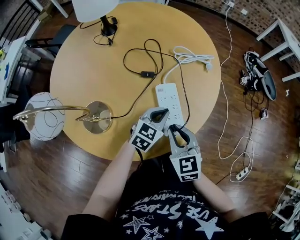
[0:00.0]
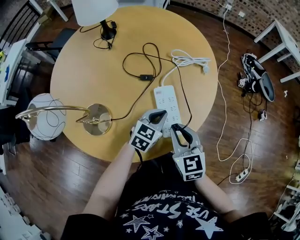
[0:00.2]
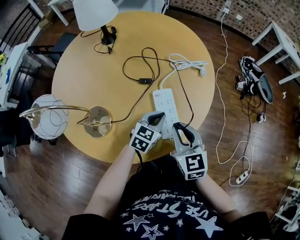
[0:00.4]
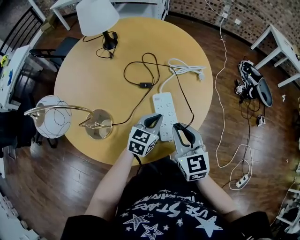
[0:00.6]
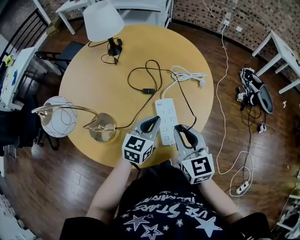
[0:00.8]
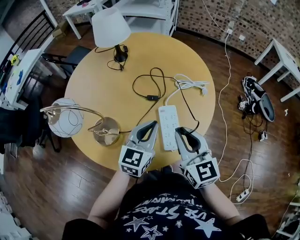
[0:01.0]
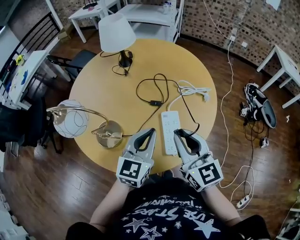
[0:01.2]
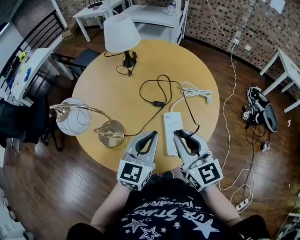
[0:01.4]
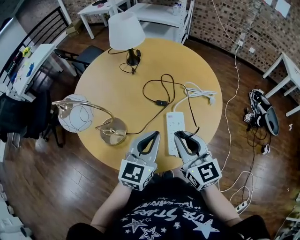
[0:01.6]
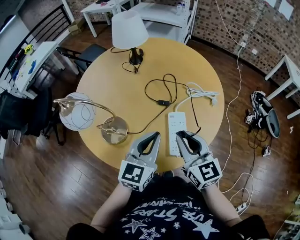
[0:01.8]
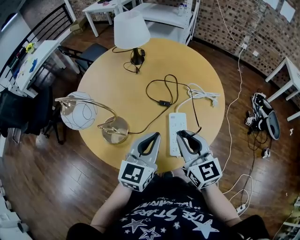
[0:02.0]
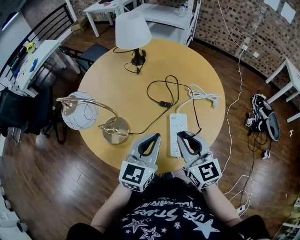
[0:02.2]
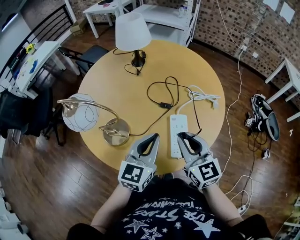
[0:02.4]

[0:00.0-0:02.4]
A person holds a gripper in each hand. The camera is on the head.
0:00.0 to 0:01.2: The grippers both shift upward by some 15 cm. The left gripper changes its angle by roughly 30 degrees. Meanwhile the right gripper changes its angle by some 30 degrees.
0:01.2 to 0:02.4: The grippers make only small movements.

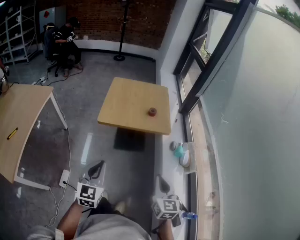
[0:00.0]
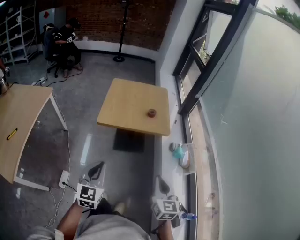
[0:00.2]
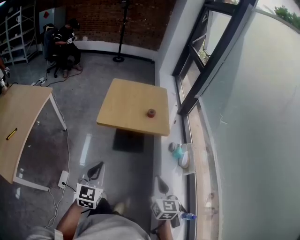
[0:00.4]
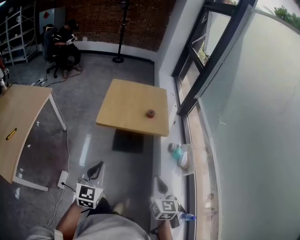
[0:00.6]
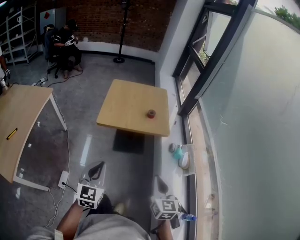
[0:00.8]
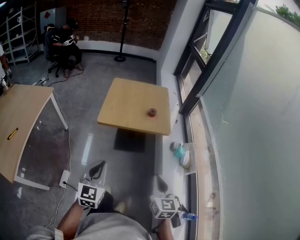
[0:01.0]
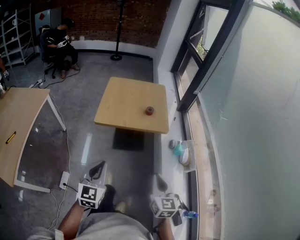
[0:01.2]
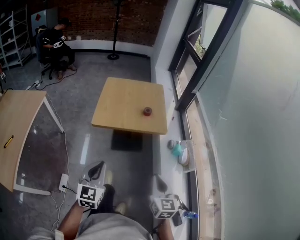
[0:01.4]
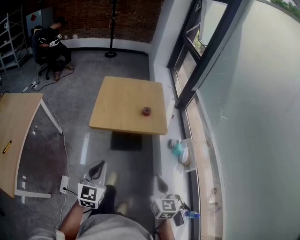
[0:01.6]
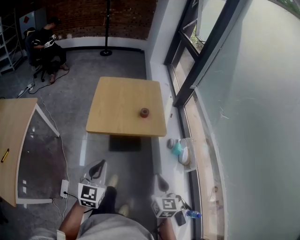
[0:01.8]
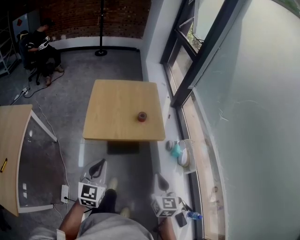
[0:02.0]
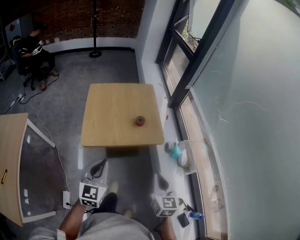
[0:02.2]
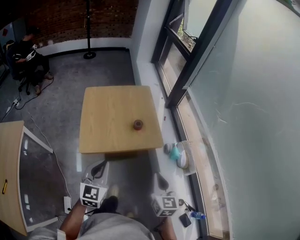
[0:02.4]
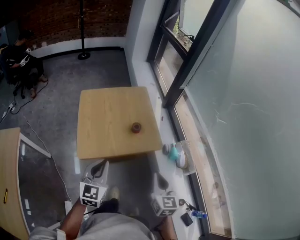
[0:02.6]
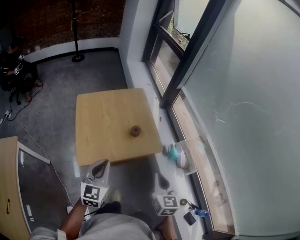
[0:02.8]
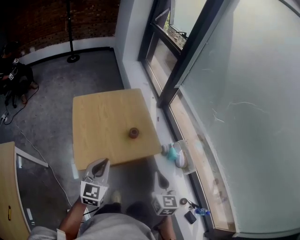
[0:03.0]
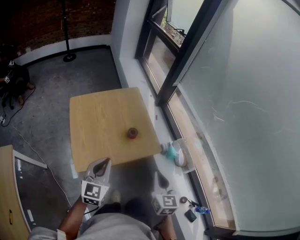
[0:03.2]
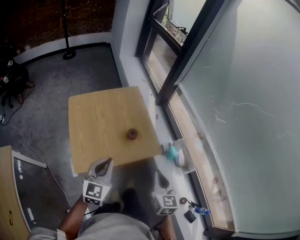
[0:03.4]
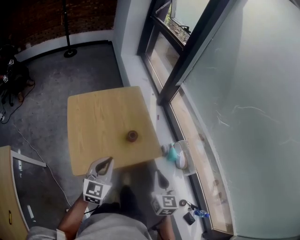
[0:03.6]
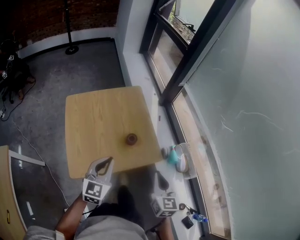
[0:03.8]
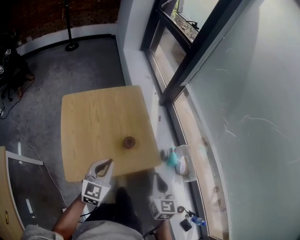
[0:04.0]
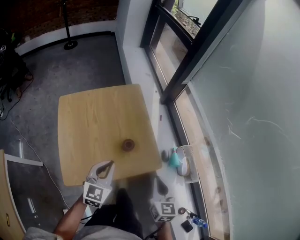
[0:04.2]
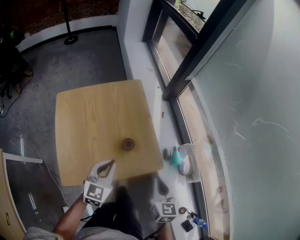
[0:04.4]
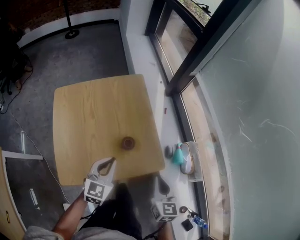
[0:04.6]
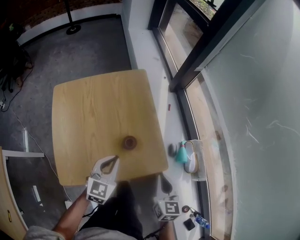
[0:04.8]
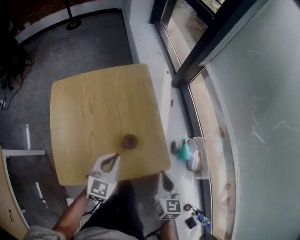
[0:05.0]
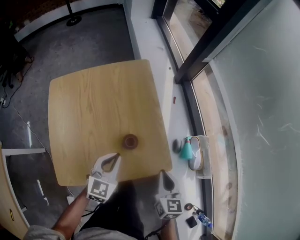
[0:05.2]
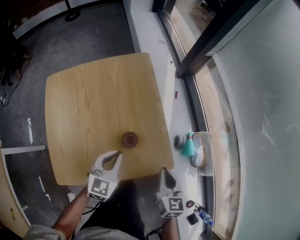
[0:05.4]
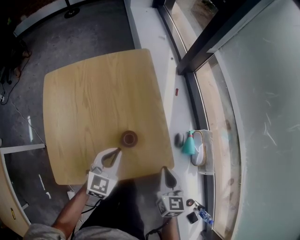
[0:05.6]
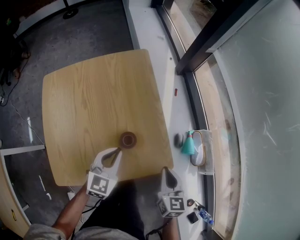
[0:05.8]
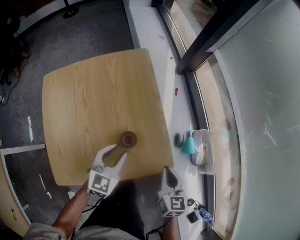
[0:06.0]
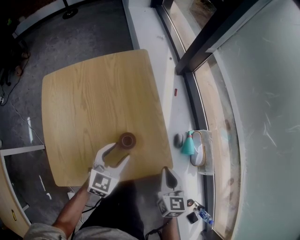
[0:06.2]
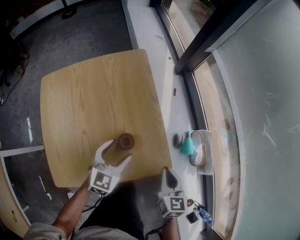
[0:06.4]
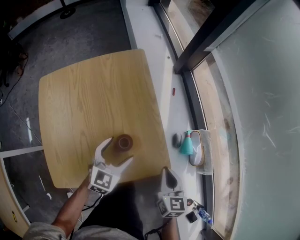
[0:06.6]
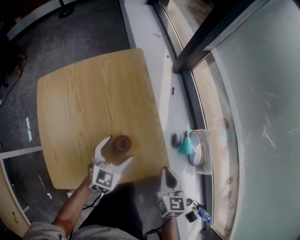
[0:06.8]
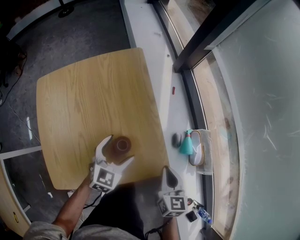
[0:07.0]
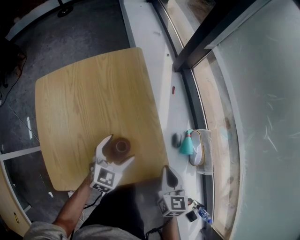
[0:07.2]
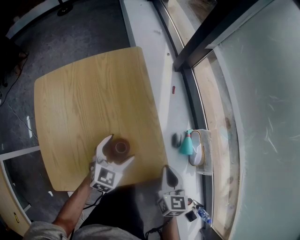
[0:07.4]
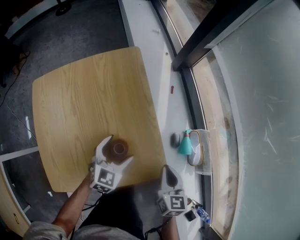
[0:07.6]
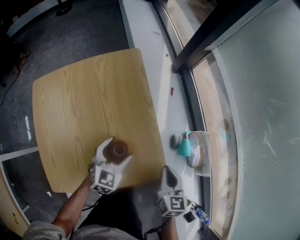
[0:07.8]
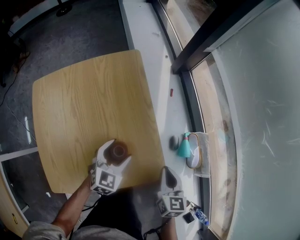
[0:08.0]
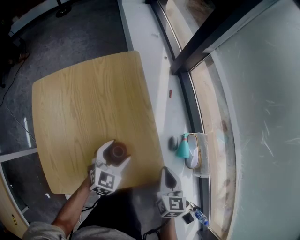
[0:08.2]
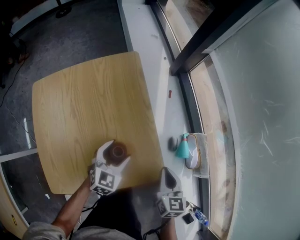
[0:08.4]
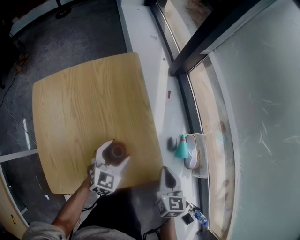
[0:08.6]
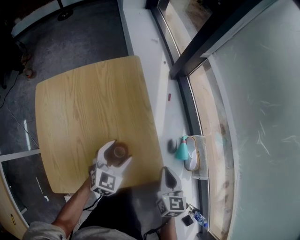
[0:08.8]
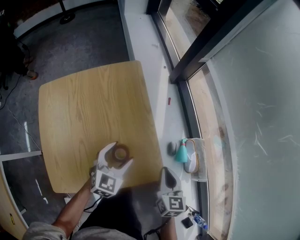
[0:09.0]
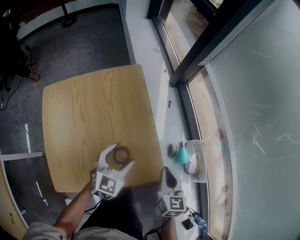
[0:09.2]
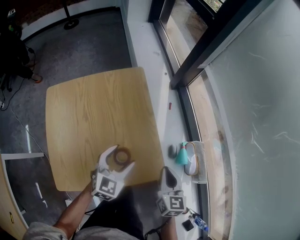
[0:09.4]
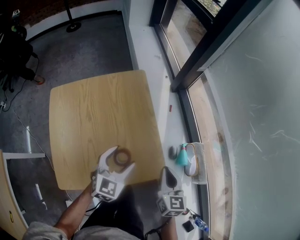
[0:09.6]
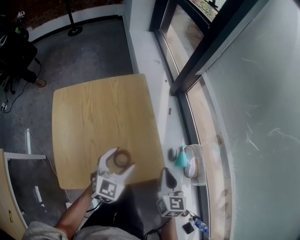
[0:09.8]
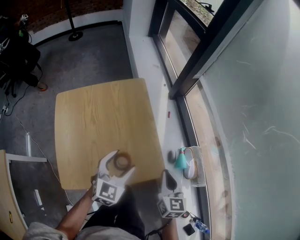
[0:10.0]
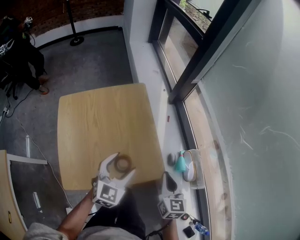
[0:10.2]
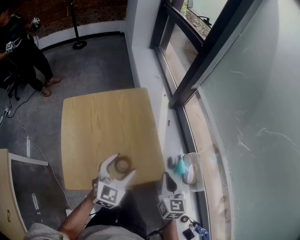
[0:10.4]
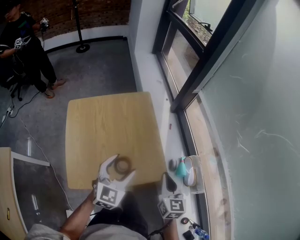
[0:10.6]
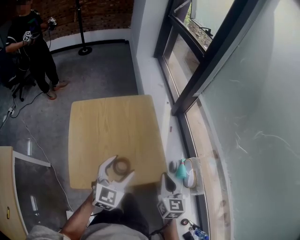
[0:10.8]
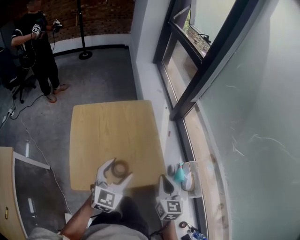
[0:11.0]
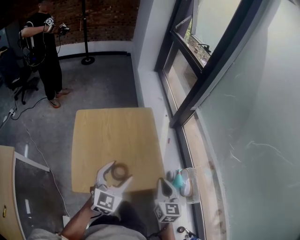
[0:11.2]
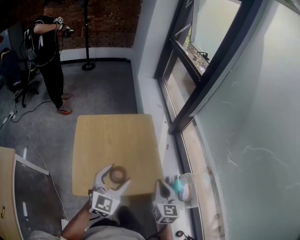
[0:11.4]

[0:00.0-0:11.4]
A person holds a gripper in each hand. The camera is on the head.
0:00.0 to 0:01.4: The grippers stay close to where they were, moving slightly.
0:01.4 to 0:02.8: The grippers both shift forward by about 25 cm.
0:02.8 to 0:04.2: The grippers both shift forward and downward by about 20 cm.
0:04.2 to 0:05.6: Both grippers move downward and forward, roughly 15 cm.
0:05.6 to 0:07.2: The left gripper shifts about 5 cm forward, and opens its fingers.
0:07.2 to 0:08.6: There are only small adjustments of the grippers.
0:08.6 to 0:10.0: The grippers both shift upward by roughly 15 cm.
0:10.0 to 0:11.4: The left gripper moves upward, to the left and backward, some 20 cm. Meanwhile the right gripper moves upward and to the left, about 15 cm.

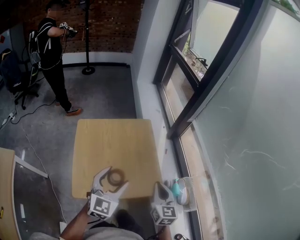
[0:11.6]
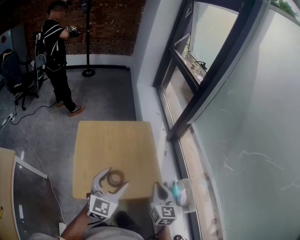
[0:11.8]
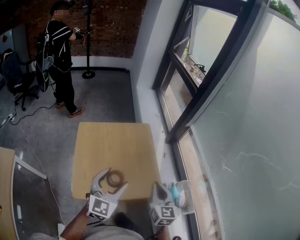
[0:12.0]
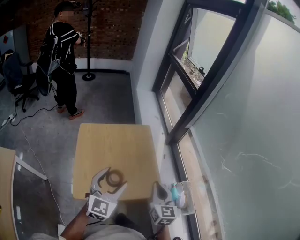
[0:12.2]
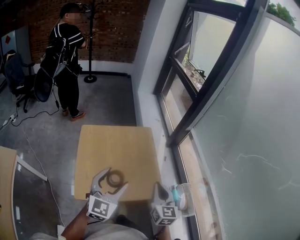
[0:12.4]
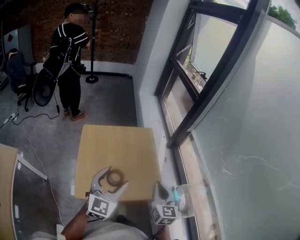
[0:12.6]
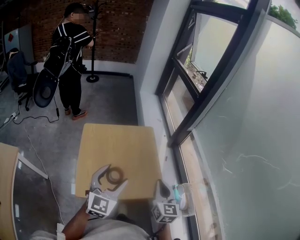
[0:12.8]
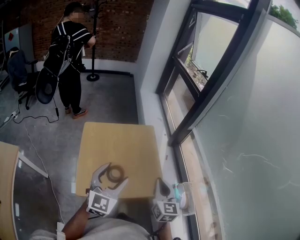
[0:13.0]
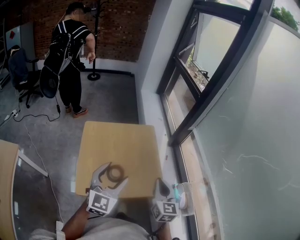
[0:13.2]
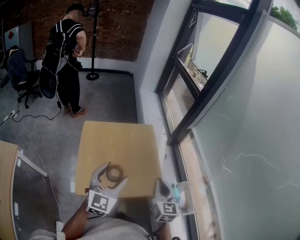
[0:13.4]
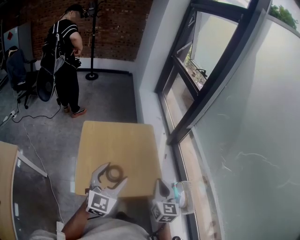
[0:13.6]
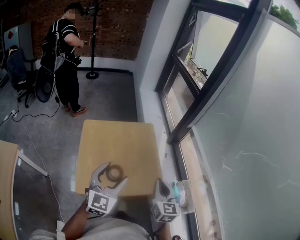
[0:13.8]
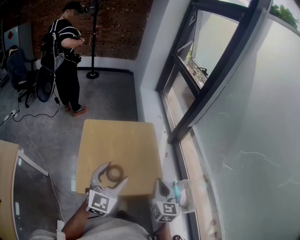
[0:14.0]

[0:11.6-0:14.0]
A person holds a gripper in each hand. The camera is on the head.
0:11.6 to 0:12.8: The left gripper heads upward, covering approximately 5 cm.
0:12.8 to 0:14.0: The grippers make only small movements.

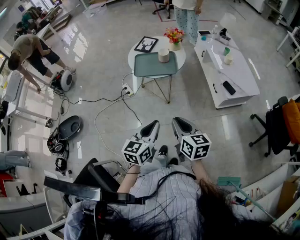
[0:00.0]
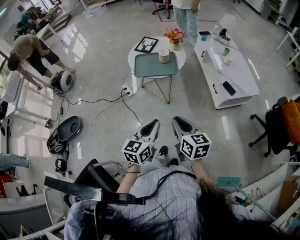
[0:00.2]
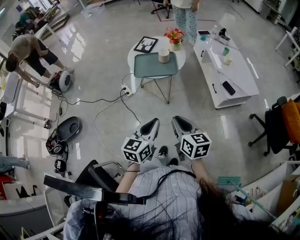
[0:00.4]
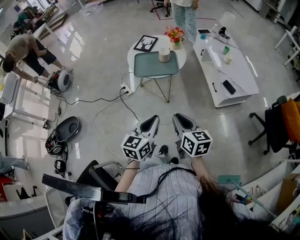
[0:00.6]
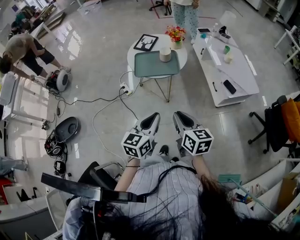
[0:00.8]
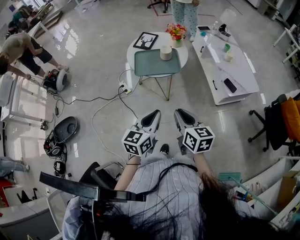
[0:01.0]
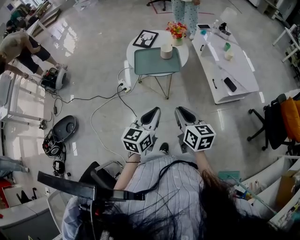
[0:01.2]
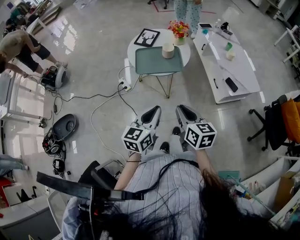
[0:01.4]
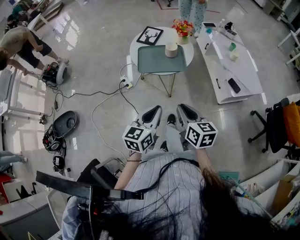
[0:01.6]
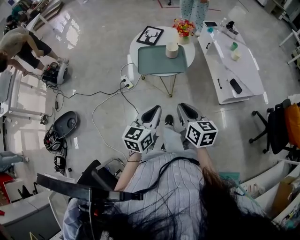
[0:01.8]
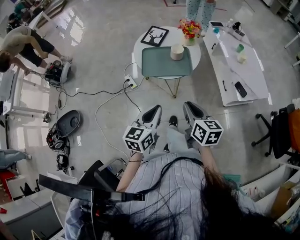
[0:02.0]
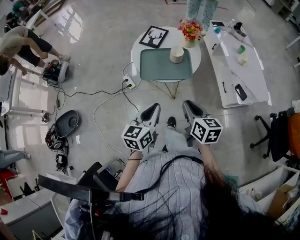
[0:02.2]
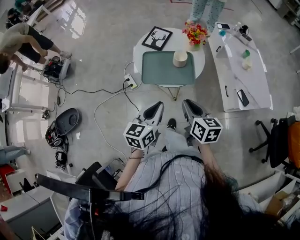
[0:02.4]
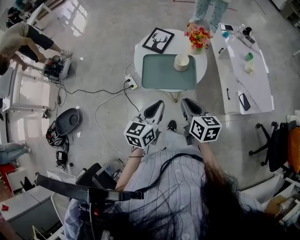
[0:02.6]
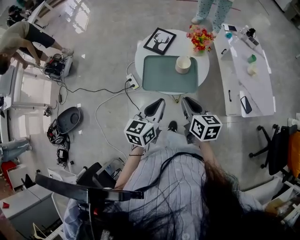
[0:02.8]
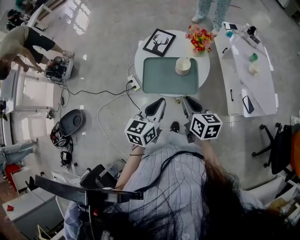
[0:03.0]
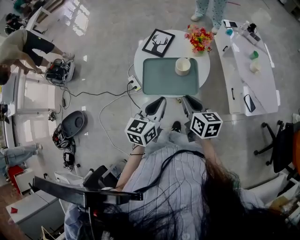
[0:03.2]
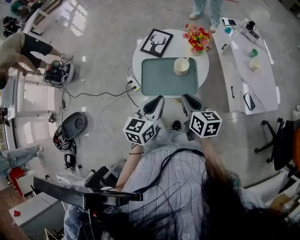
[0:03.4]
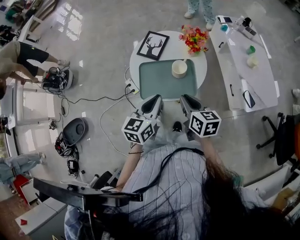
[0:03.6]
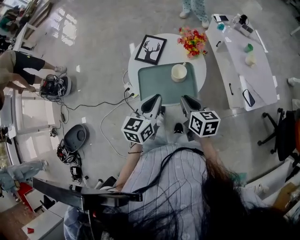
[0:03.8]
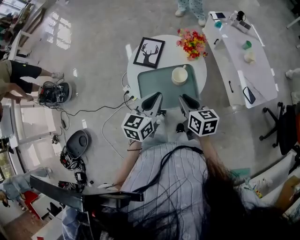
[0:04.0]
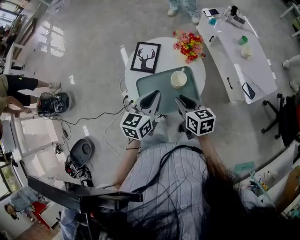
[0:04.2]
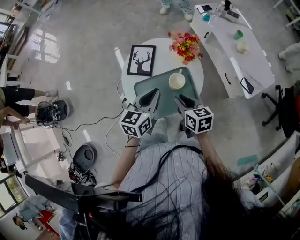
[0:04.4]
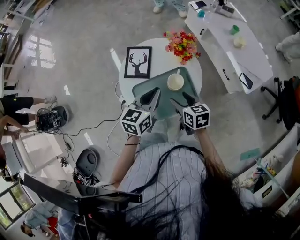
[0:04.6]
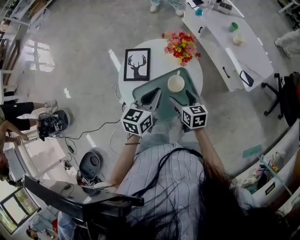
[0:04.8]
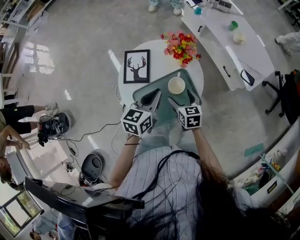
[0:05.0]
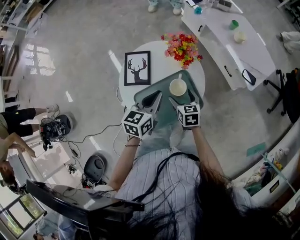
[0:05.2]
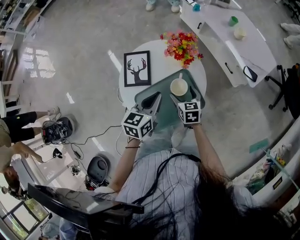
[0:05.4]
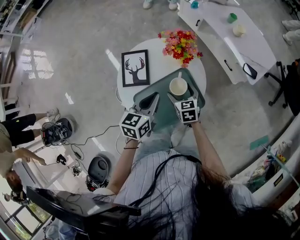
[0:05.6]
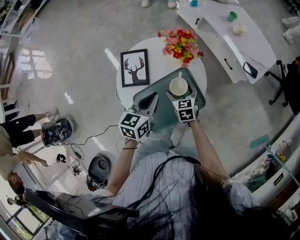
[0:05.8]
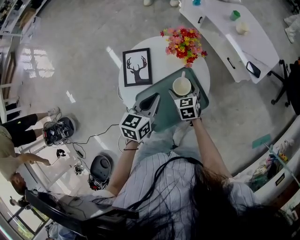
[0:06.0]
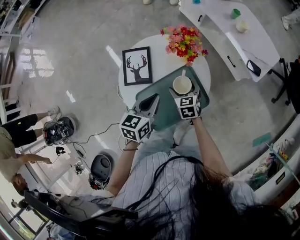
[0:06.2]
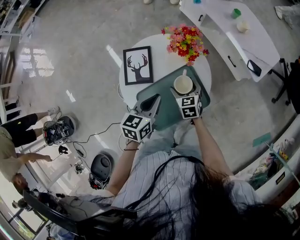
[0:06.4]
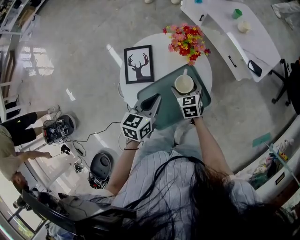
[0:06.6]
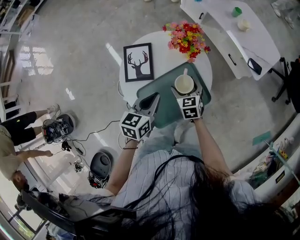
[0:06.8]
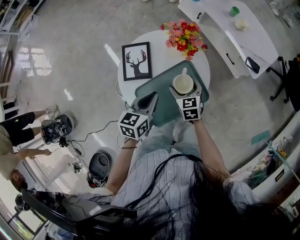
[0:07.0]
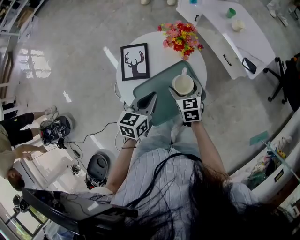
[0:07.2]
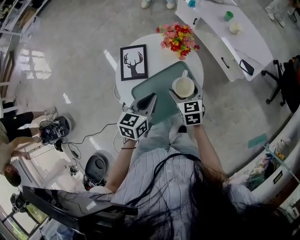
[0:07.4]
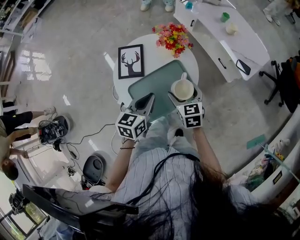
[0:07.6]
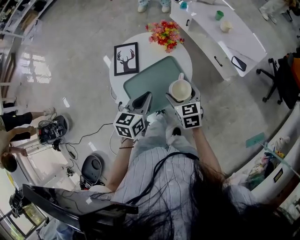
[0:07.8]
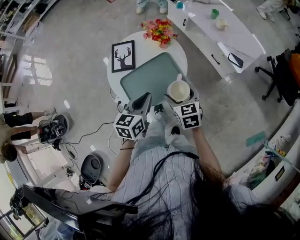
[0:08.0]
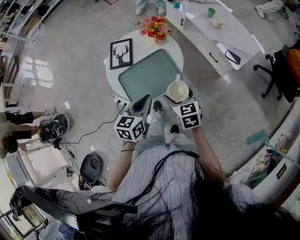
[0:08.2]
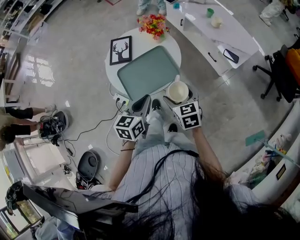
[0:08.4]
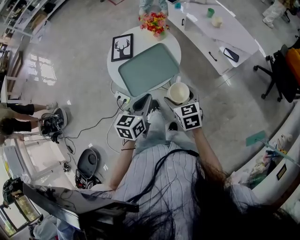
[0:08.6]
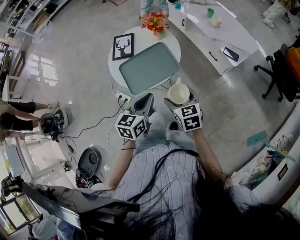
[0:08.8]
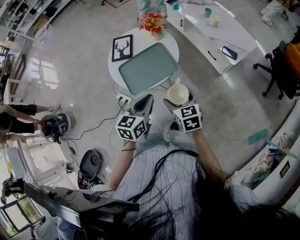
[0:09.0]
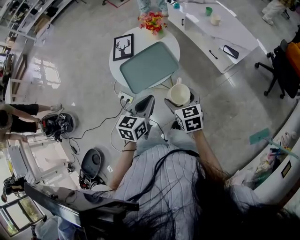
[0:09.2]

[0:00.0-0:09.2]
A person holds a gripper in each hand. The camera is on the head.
0:00.0 to 0:01.6: Both grippers travel together forward and to the left, approximately 10 cm.
0:01.6 to 0:03.0: Both grippers move forward, about 25 cm.
0:03.0 to 0:04.6: The left gripper moves forward, about 20 cm, and changes its angle by roughly 30 degrees, while the right gripper shifts some 15 cm forward and downward, and opens its fingers.
0:04.6 to 0:06.2: The right gripper shifts some 15 cm downward and forward, changes its angle by about 20 degrees, and opens, while the left gripper shifts about 5 cm downward.
0:06.2 to 0:07.6: The right gripper goes roughly 15 cm upward, backward and to the right, while the left gripper shifts by about 5 cm.
0:07.6 to 0:09.2: The right gripper goes some 20 cm backward; the left gripper shifts approximately 20 cm backward and to the right.
